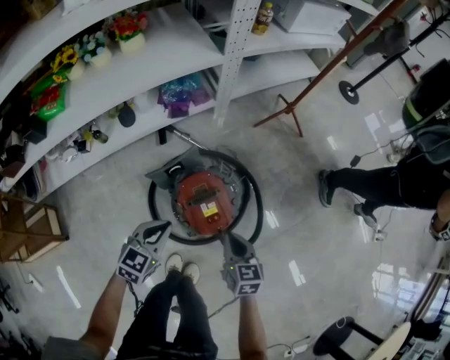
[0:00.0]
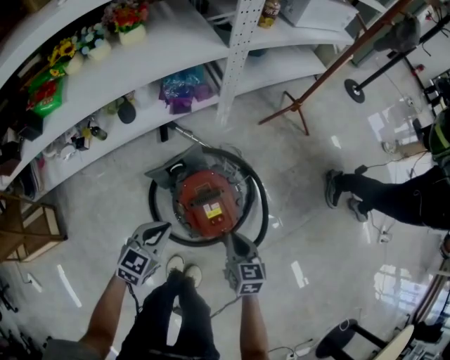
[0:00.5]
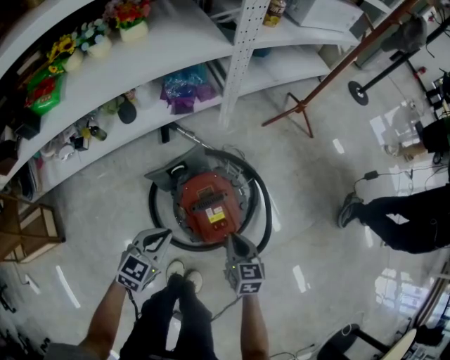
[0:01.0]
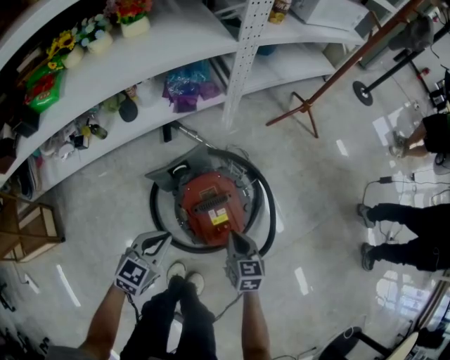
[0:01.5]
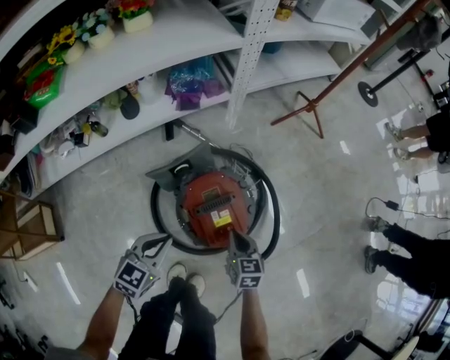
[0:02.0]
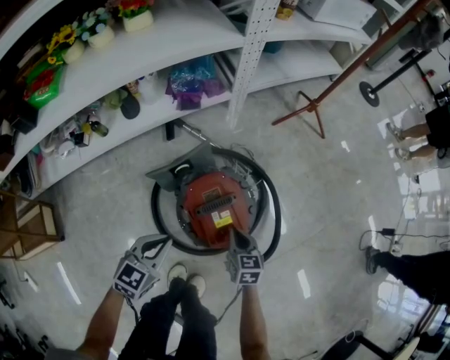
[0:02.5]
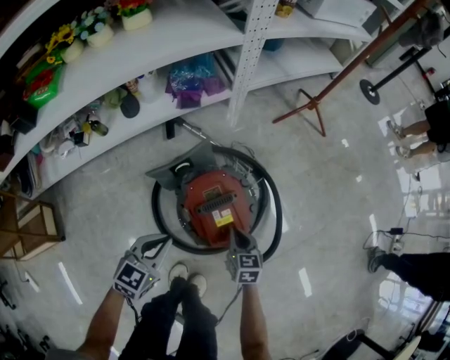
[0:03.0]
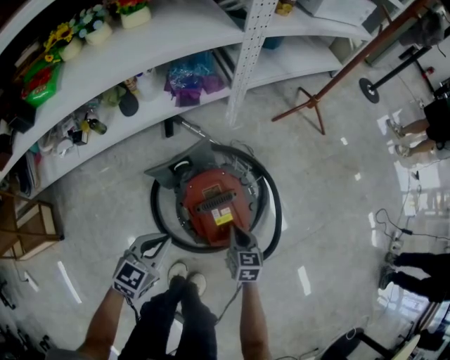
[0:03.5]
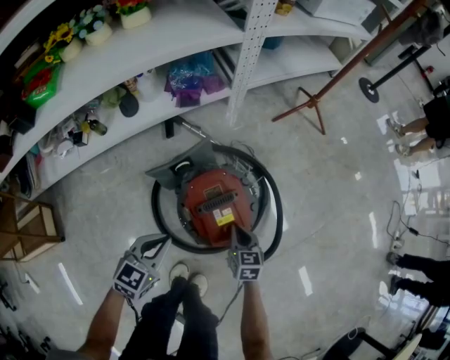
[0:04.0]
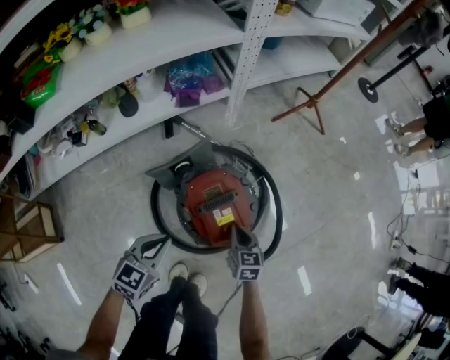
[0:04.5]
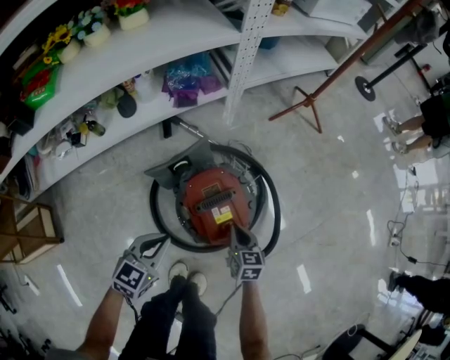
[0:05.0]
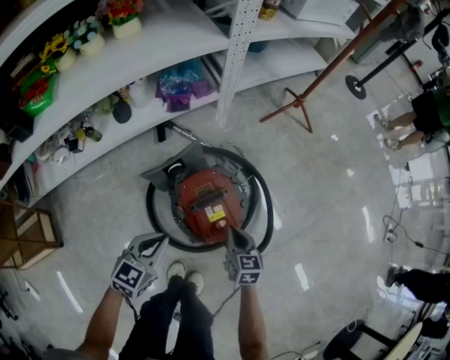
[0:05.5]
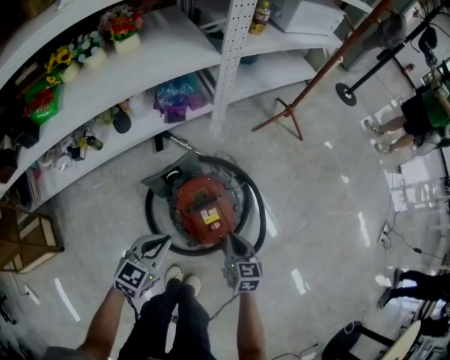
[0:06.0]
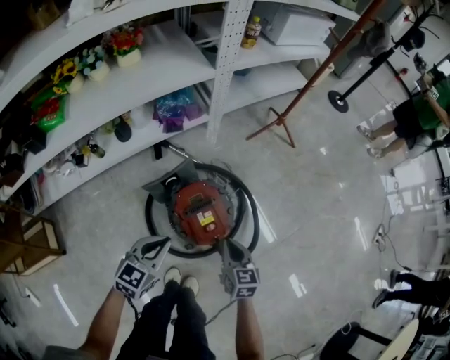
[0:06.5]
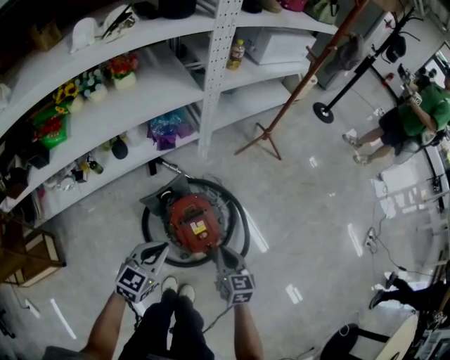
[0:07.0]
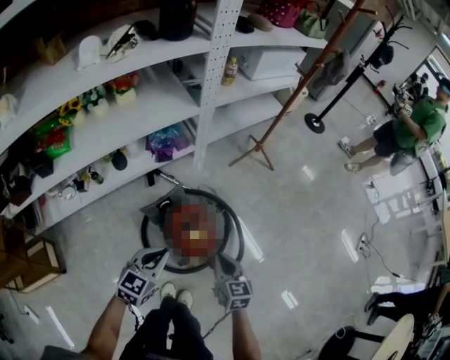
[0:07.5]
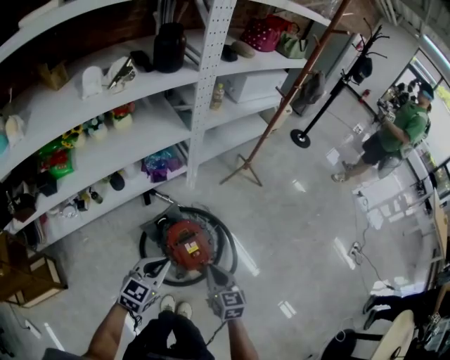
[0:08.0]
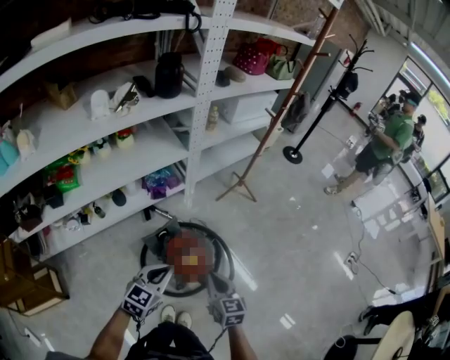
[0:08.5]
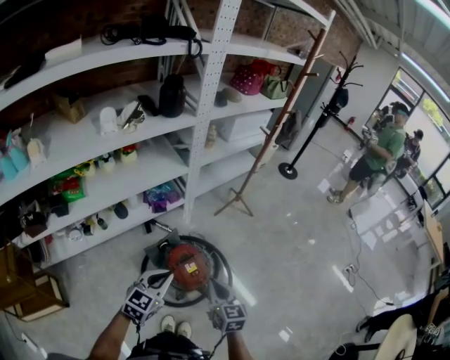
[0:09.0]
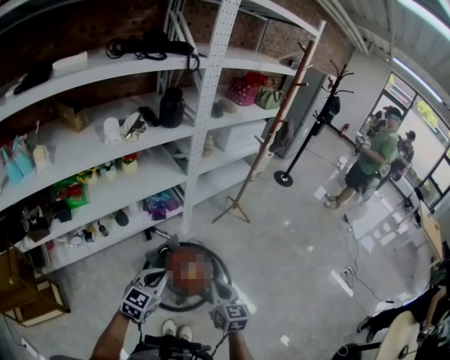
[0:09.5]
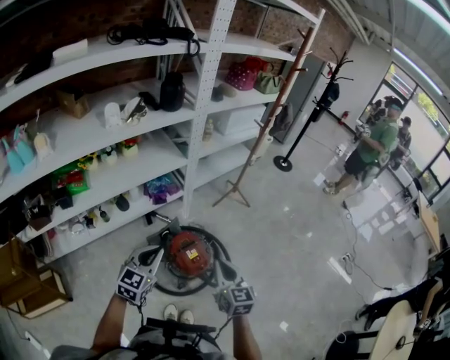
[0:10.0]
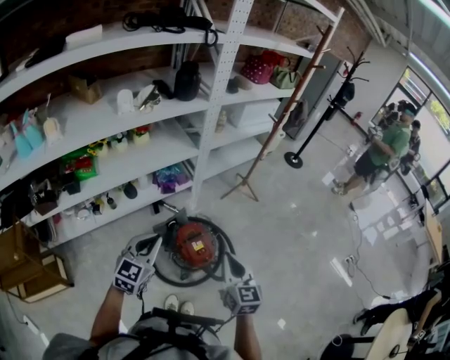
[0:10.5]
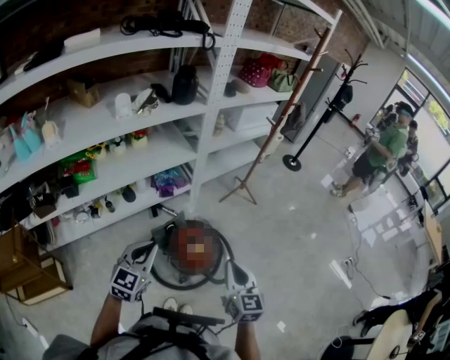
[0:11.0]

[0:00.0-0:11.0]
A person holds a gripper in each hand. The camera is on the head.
0:00.0 to 0:02.0: The two grippers go approximately 15 cm downward.
0:02.0 to 0:03.5: The grippers make only small movements.
0:03.5 to 0:05.5: The right gripper shifts about 5 cm upward.
0:05.5 to 0:07.5: Both grippers move upward, approximately 25 cm.
0:07.5 to 0:09.0: The two grippers go about 15 cm upward.
0:09.0 to 0:11.0: The right gripper travels upward by about 10 cm. The left gripper moves to the left and upward, some 10 cm.

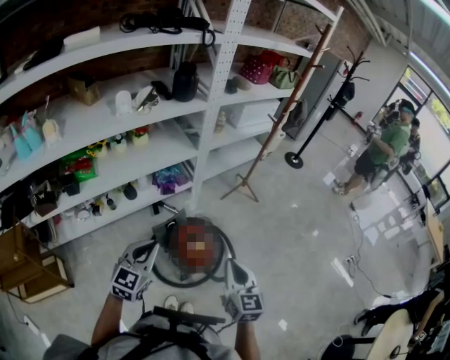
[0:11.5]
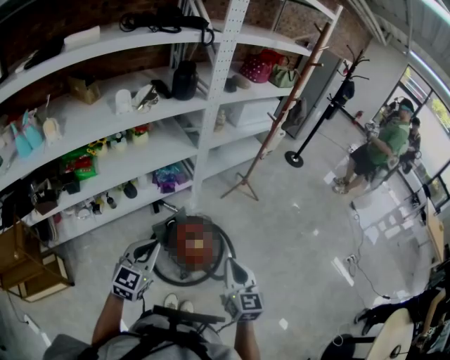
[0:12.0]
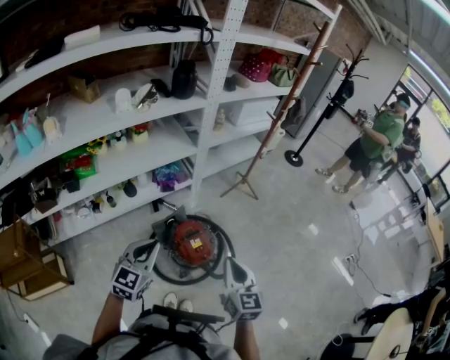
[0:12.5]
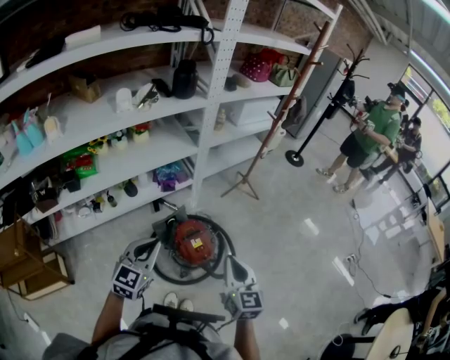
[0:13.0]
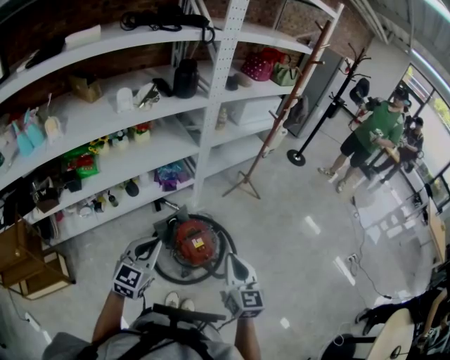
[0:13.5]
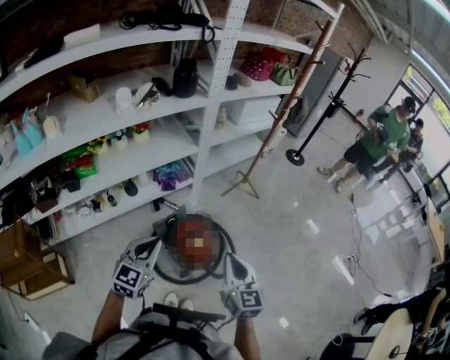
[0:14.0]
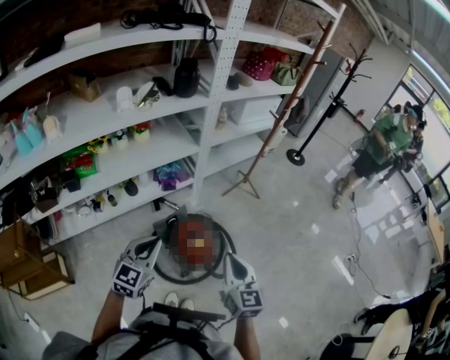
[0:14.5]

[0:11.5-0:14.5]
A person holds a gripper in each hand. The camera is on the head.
0:11.5 to 0:14.5: The grippers move only a little.

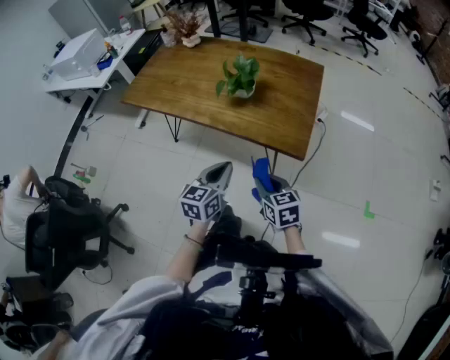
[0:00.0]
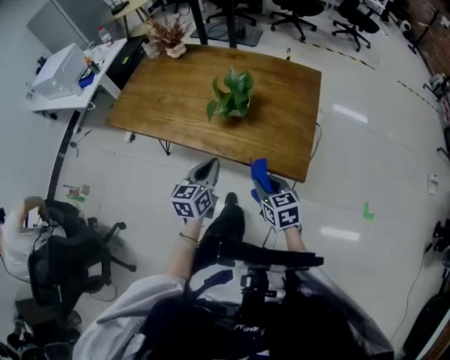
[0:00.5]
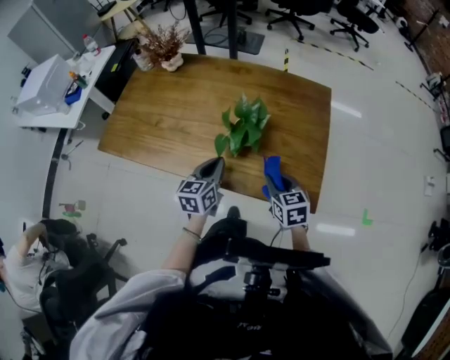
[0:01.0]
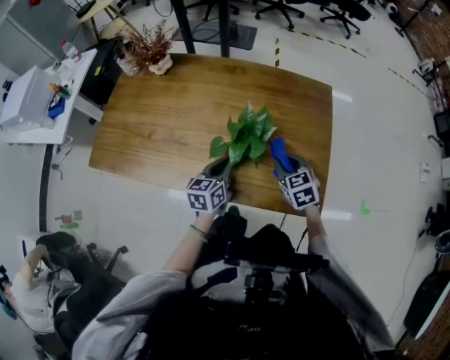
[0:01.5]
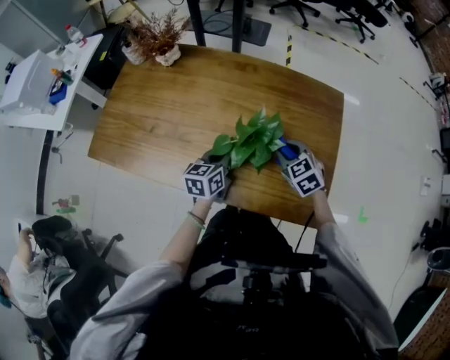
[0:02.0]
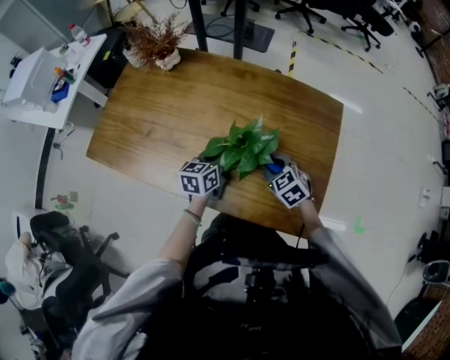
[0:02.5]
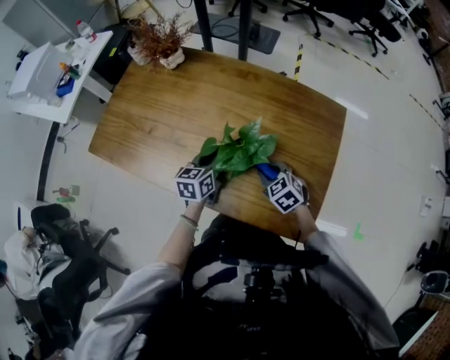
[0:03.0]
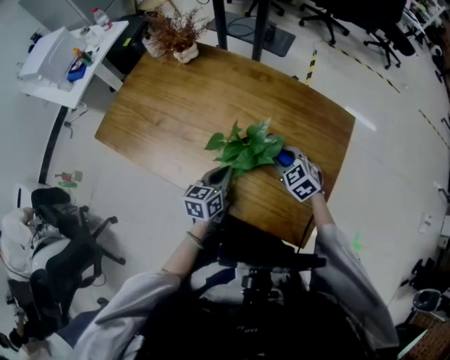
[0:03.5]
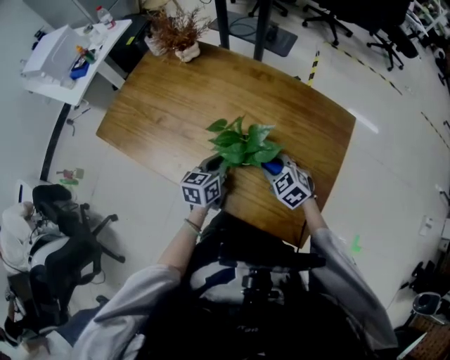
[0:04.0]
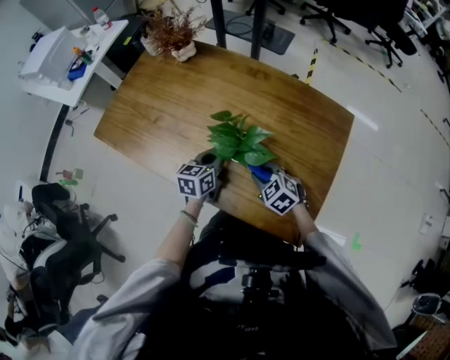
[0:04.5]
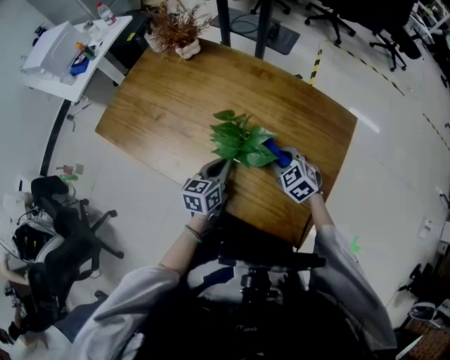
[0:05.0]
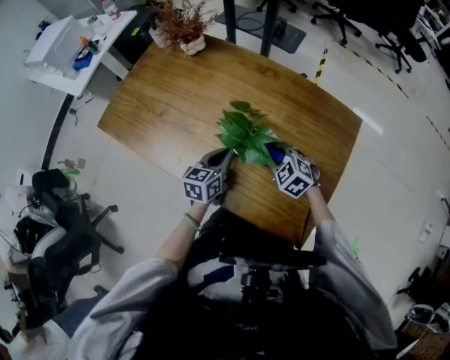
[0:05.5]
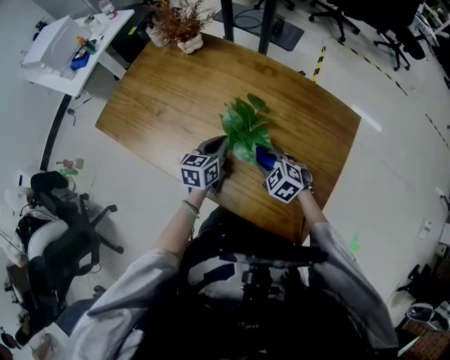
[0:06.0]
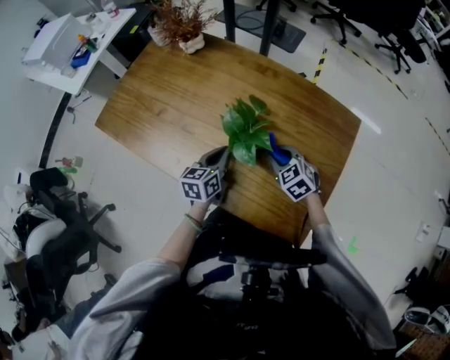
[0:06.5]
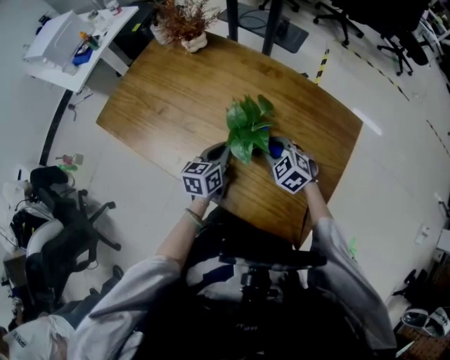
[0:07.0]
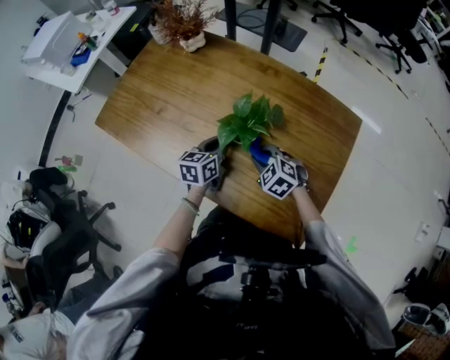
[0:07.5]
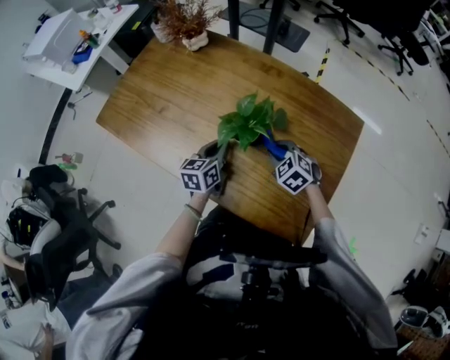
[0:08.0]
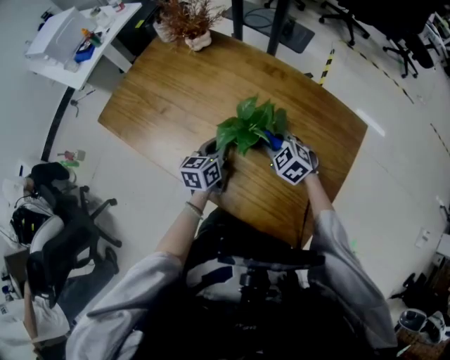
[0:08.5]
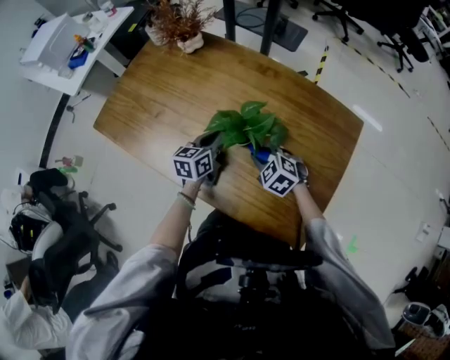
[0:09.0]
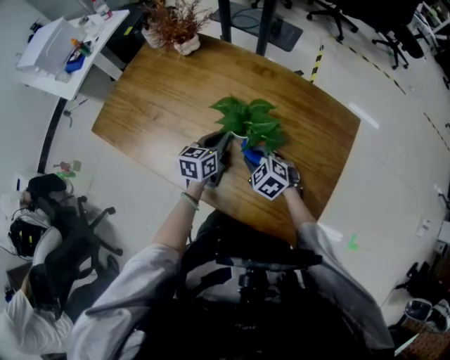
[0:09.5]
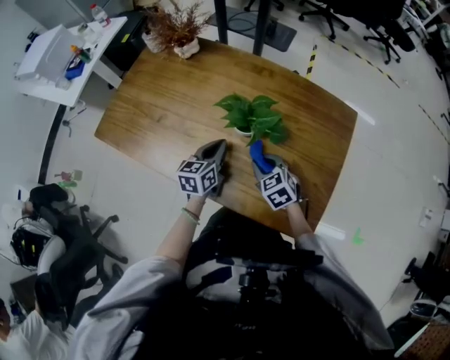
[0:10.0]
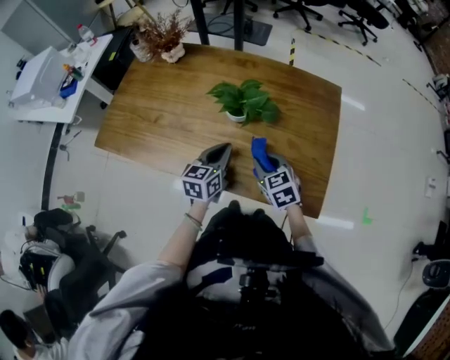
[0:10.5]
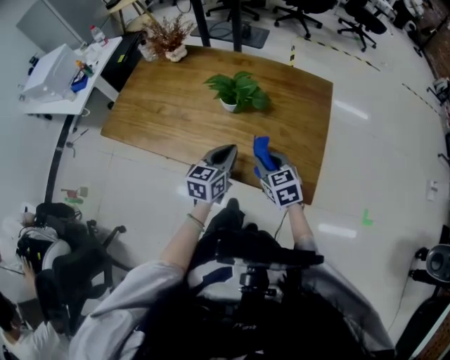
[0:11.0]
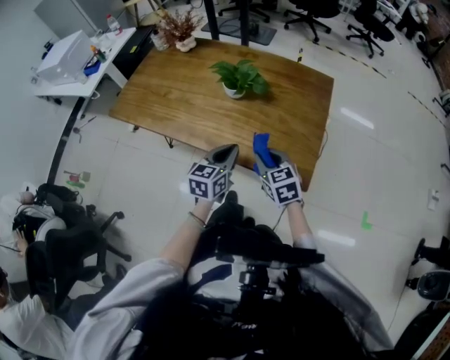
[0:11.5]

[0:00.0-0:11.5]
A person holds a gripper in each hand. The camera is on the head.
0:00.0 to 0:02.0: Both grippers are carried forward, some 40 cm. The right gripper changes its angle by some 30 degrees.
0:02.0 to 0:04.0: The right gripper ends up approximately 5 cm from where it was, and turns by approximately 20 degrees.
0:04.0 to 0:06.0: There are only small adjustments of the grippers.
0:09.5 to 0:11.5: The grippers both shift backward by approximately 25 cm. The right gripper swivels about 40 degrees.

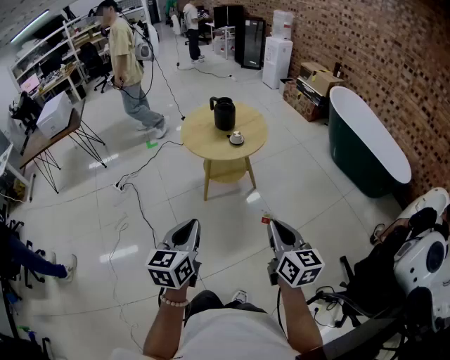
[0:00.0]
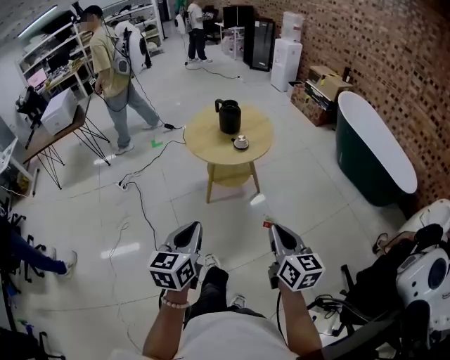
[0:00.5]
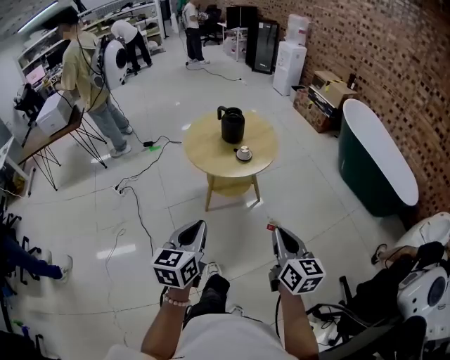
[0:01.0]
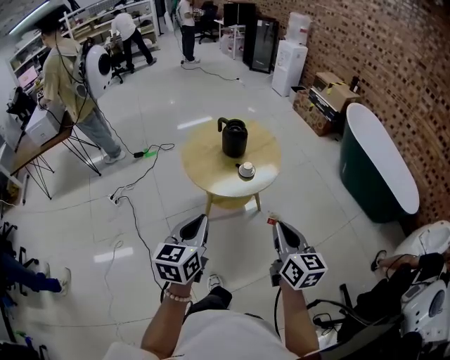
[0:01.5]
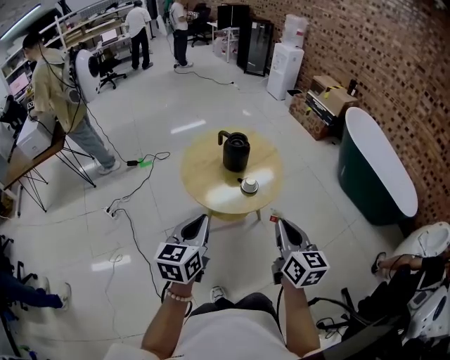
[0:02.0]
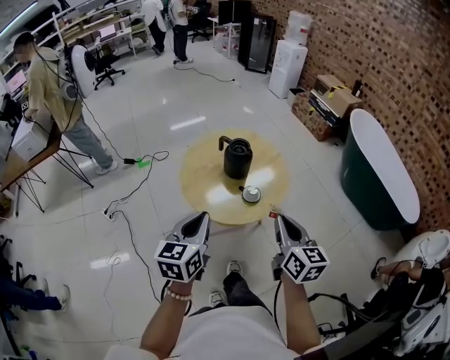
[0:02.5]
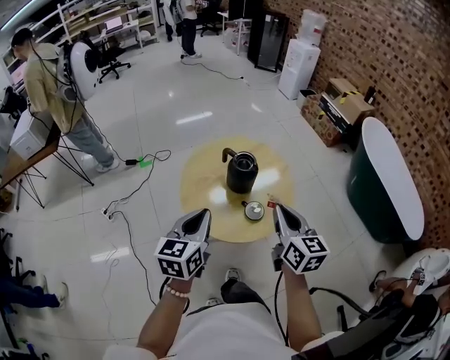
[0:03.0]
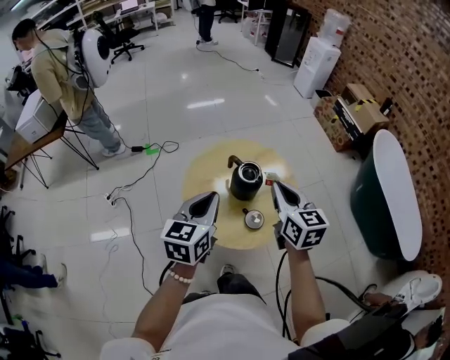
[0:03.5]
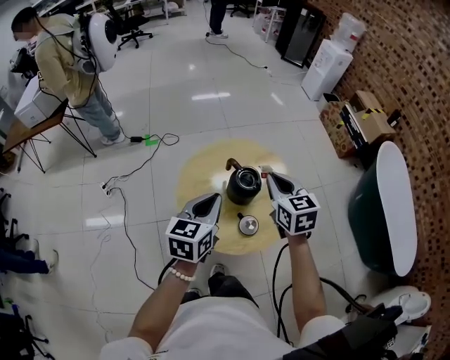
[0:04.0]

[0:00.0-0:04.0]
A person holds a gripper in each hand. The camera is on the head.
0:00.0 to 0:02.0: The two grippers go approximately 30 cm forward.
0:02.0 to 0:04.0: Both grippers move forward, approximately 35 cm. The right gripper changes its angle by about 30 degrees.
